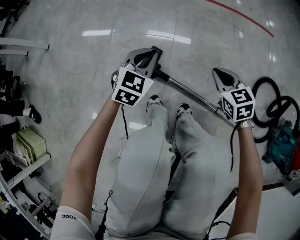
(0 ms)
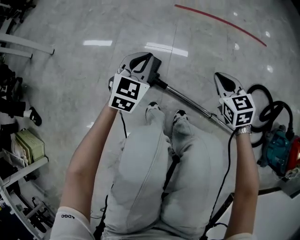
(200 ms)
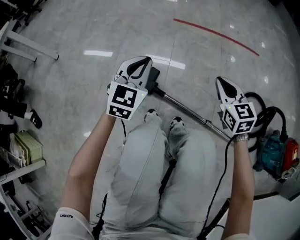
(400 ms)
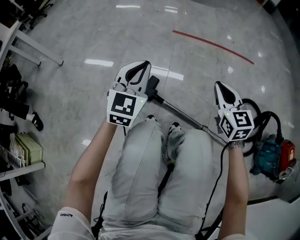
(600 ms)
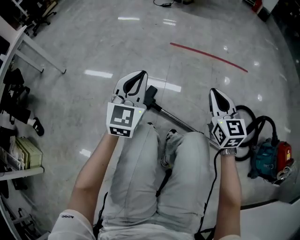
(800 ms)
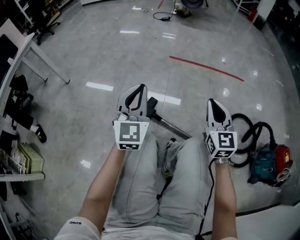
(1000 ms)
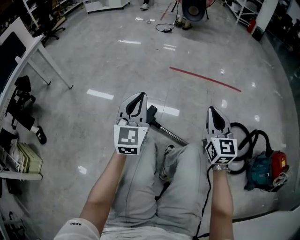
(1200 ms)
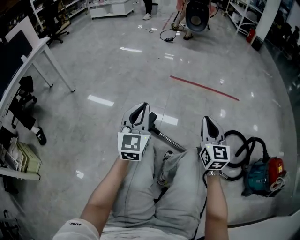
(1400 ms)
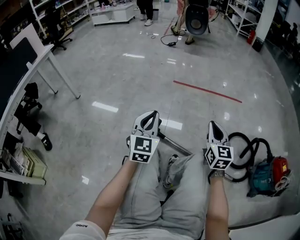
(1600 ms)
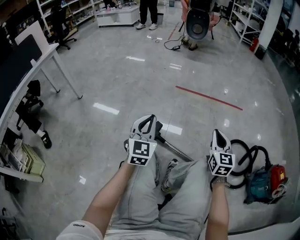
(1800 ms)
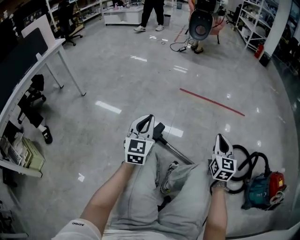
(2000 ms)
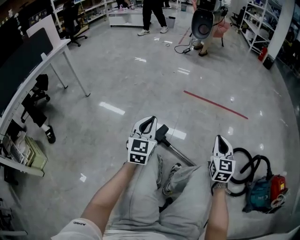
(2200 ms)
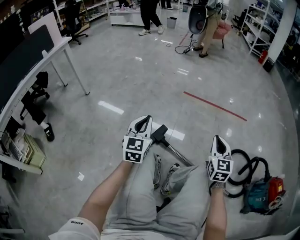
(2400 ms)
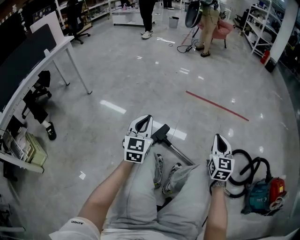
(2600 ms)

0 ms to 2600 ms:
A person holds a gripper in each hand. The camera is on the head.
0 ms to 1200 ms: The right gripper is displaced upward by approximately 35 cm, and tips its fingers upward by approximately 40 degrees. The left gripper shifts about 35 cm upward and backward, and points its fingers roughly 30 degrees further upward.
1200 ms to 2600 ms: The left gripper moves to the left, some 5 cm.

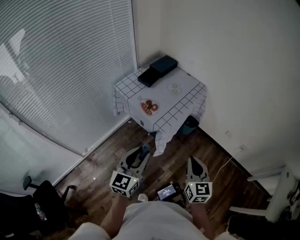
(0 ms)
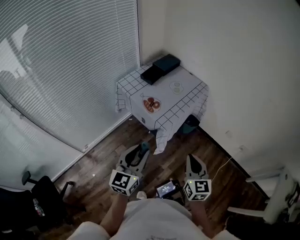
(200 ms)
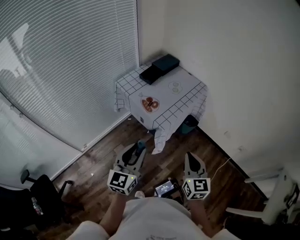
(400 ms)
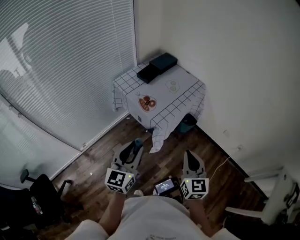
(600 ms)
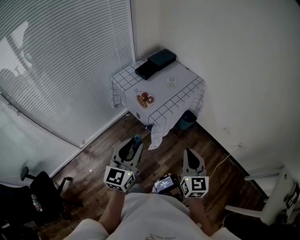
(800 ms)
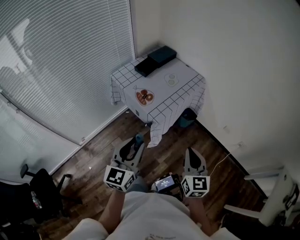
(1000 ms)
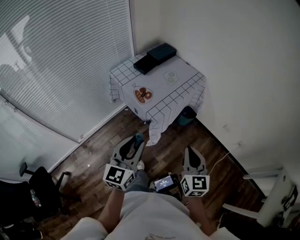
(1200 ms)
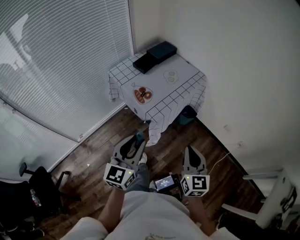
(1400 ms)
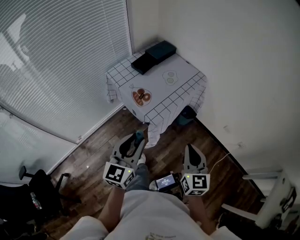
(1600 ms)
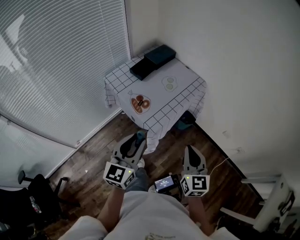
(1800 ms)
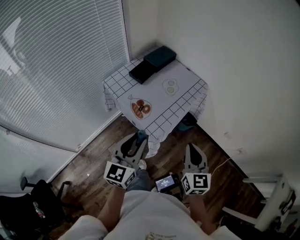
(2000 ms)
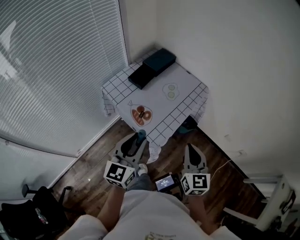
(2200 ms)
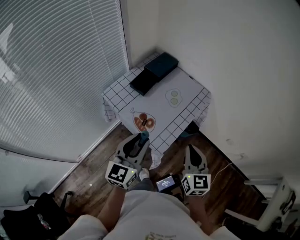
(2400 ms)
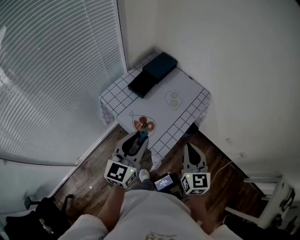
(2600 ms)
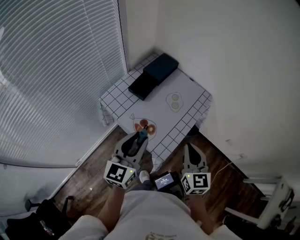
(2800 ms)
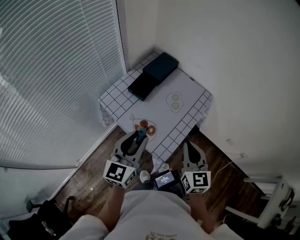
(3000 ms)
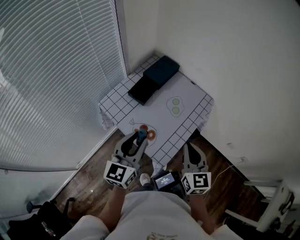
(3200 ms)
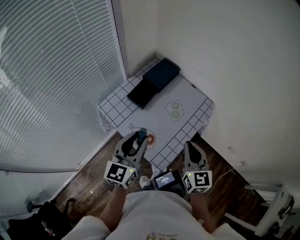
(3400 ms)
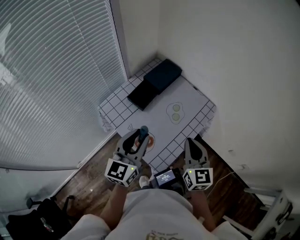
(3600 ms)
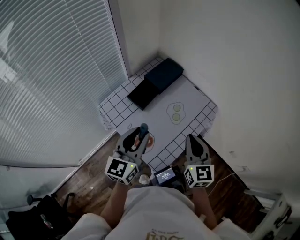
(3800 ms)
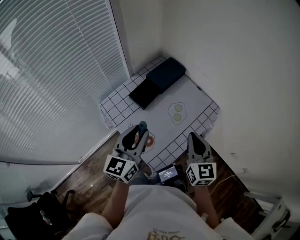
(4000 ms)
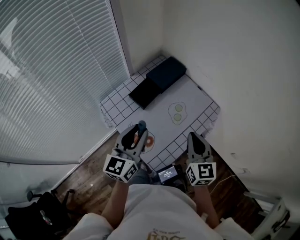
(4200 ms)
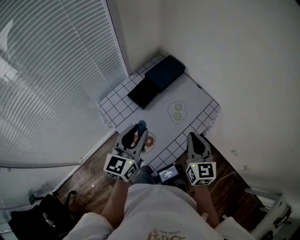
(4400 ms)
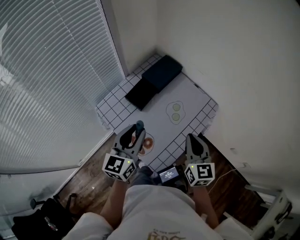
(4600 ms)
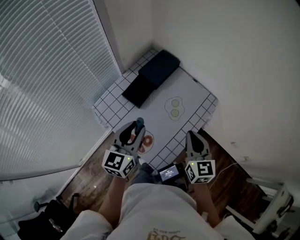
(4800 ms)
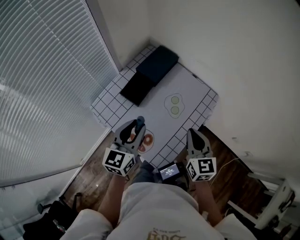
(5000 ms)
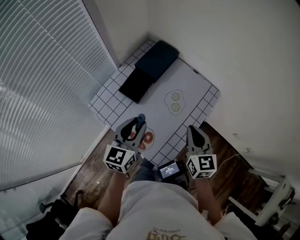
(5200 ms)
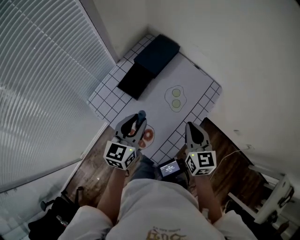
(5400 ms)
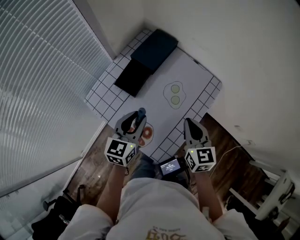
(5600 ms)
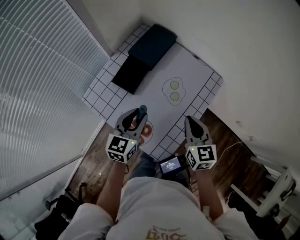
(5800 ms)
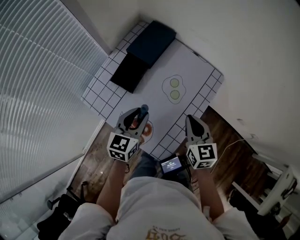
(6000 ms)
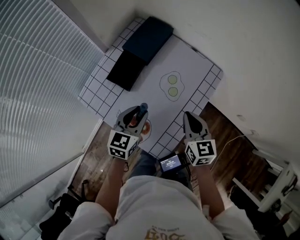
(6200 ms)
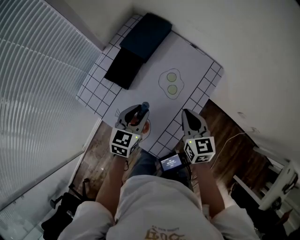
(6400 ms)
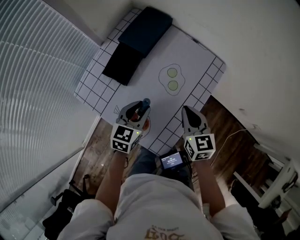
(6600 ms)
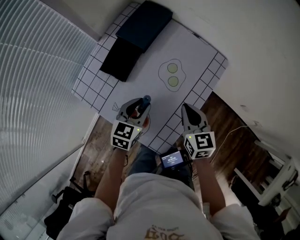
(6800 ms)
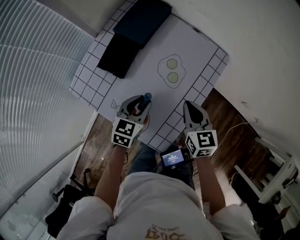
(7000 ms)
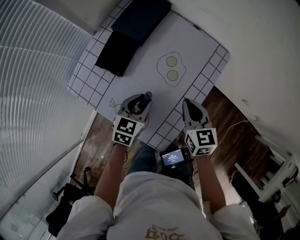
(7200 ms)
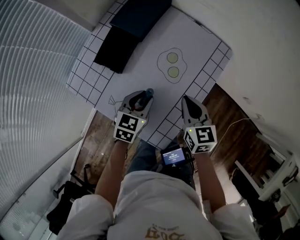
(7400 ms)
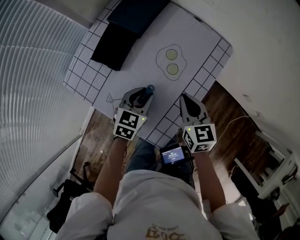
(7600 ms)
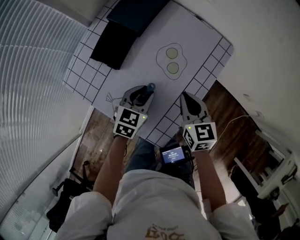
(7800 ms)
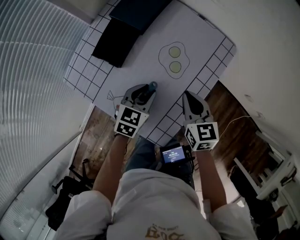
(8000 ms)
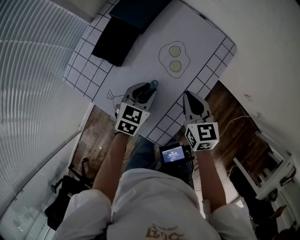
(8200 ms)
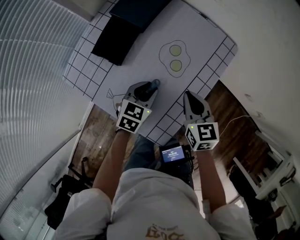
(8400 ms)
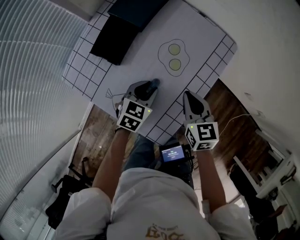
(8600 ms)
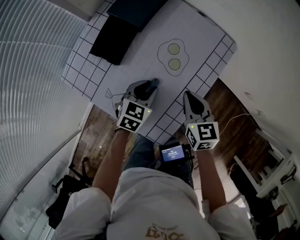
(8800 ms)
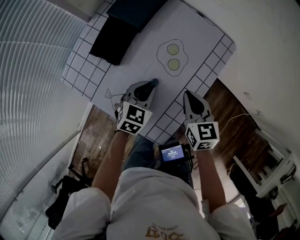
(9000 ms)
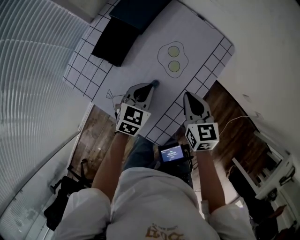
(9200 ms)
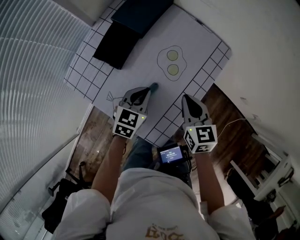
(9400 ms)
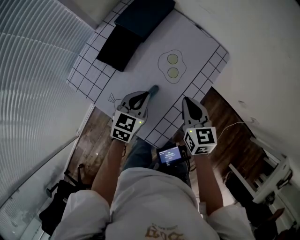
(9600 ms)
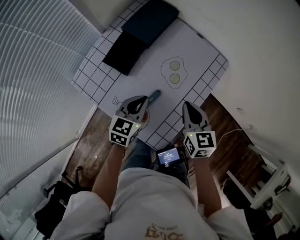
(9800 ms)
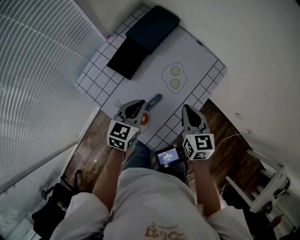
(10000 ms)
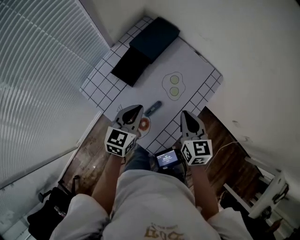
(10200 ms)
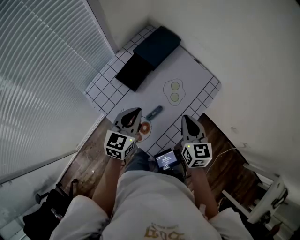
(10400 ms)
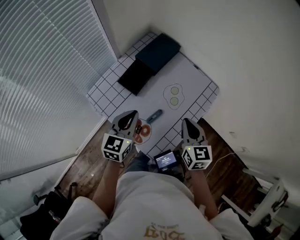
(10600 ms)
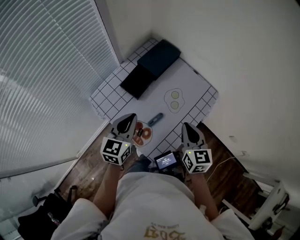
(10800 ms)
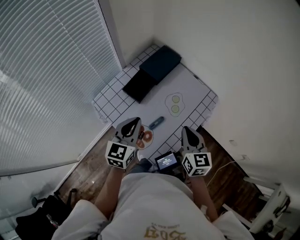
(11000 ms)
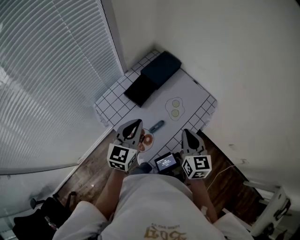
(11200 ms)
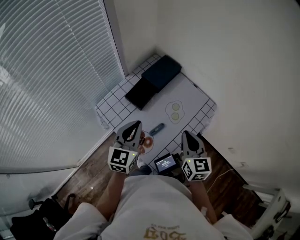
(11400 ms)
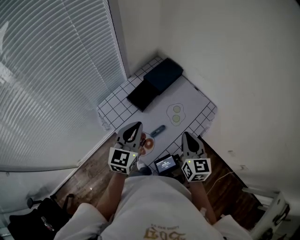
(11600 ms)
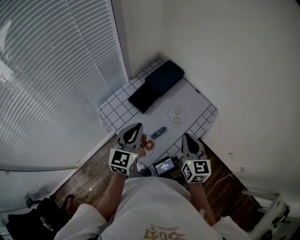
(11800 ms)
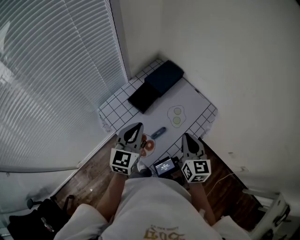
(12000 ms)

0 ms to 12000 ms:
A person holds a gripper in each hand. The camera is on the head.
0 ms to 1600 ms: The grippers both shift forward by roughly 5 cm.
1600 ms to 3000 ms: The two grippers go roughly 25 cm forward and to the left.
3000 ms to 4400 ms: Both grippers move forward, some 10 cm.
4400 ms to 6000 ms: The left gripper heads downward and forward, covering approximately 15 cm, and swivels approximately 20 degrees. The right gripper shifts roughly 10 cm downward.
6000 ms to 7600 ms: The left gripper shifts some 10 cm downward. Meanwhile the right gripper goes approximately 10 cm downward.
7600 ms to 9000 ms: The grippers move only a little.
9000 ms to 10400 ms: The right gripper heads upward, covering some 10 cm. The left gripper heads upward and to the left, covering some 20 cm, and swivels some 30 degrees.
10400 ms to 12000 ms: Both grippers travel together upward, about 10 cm.

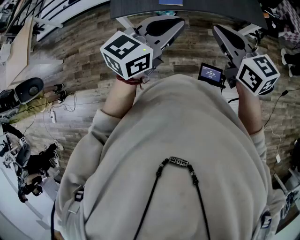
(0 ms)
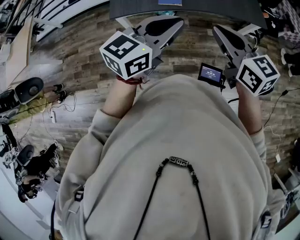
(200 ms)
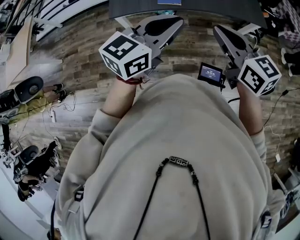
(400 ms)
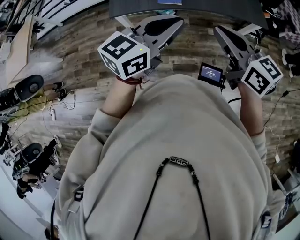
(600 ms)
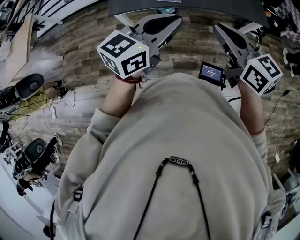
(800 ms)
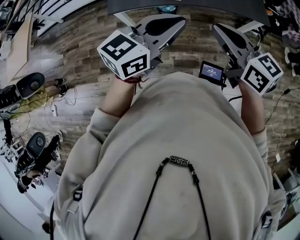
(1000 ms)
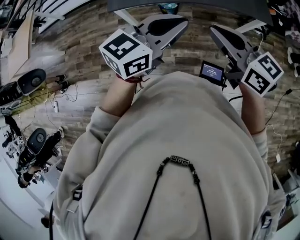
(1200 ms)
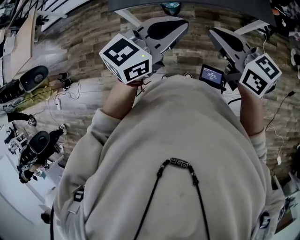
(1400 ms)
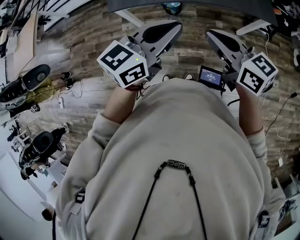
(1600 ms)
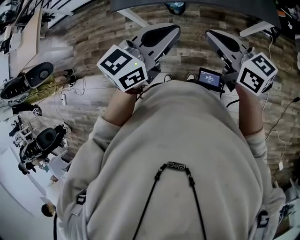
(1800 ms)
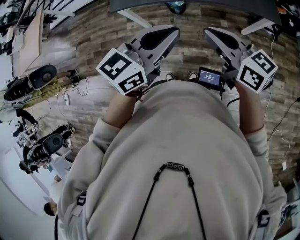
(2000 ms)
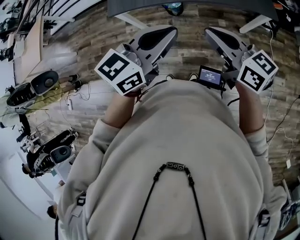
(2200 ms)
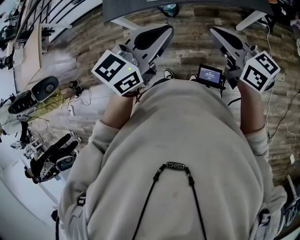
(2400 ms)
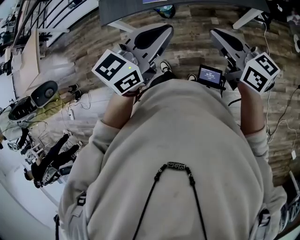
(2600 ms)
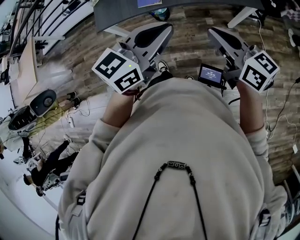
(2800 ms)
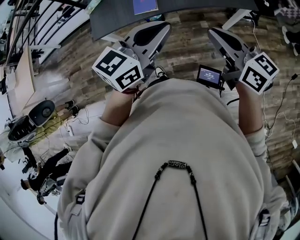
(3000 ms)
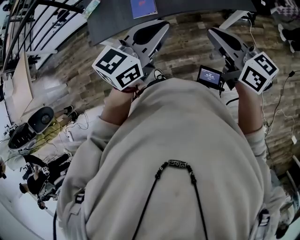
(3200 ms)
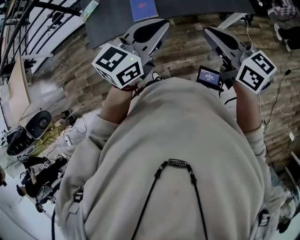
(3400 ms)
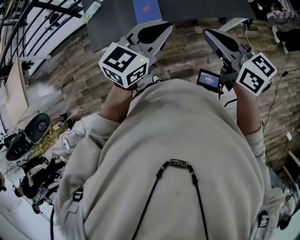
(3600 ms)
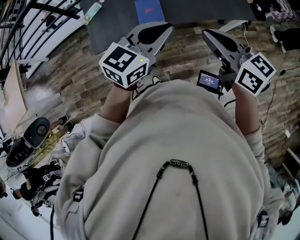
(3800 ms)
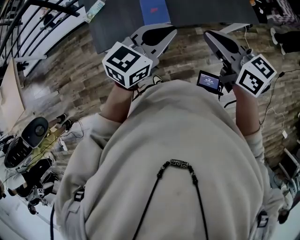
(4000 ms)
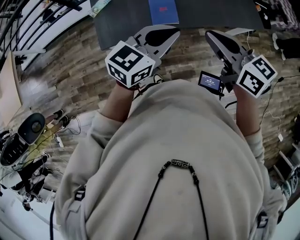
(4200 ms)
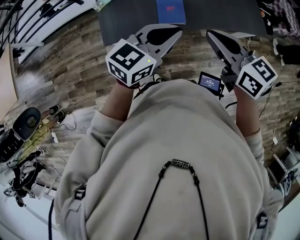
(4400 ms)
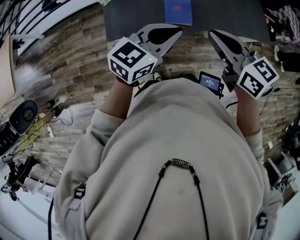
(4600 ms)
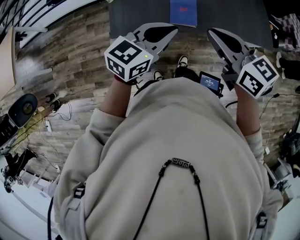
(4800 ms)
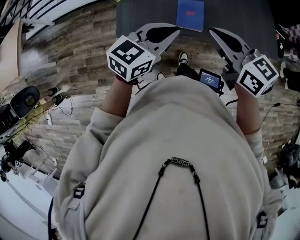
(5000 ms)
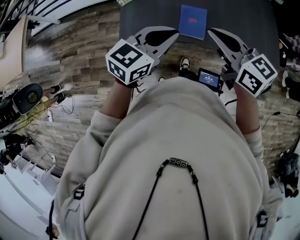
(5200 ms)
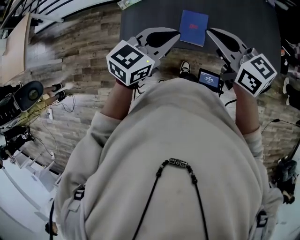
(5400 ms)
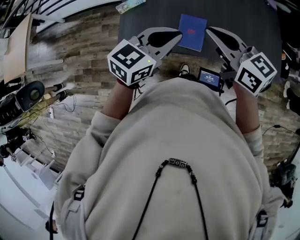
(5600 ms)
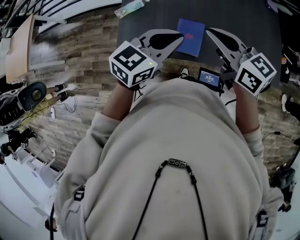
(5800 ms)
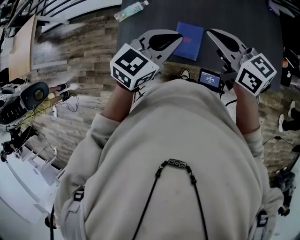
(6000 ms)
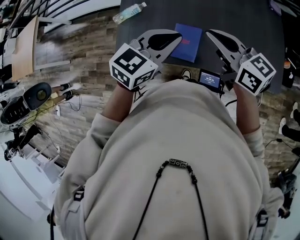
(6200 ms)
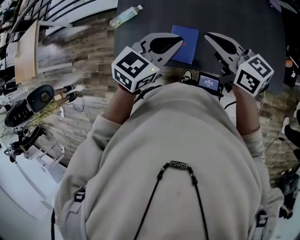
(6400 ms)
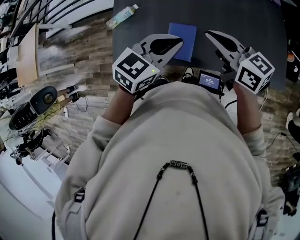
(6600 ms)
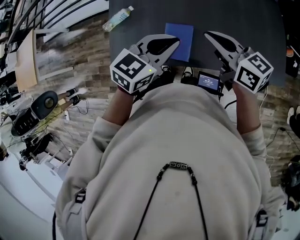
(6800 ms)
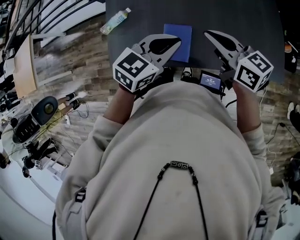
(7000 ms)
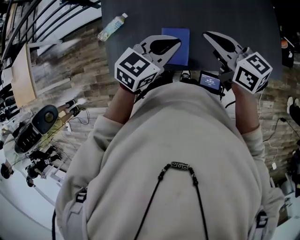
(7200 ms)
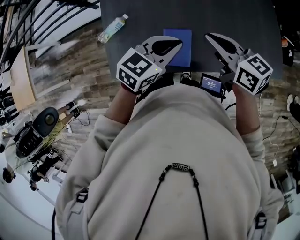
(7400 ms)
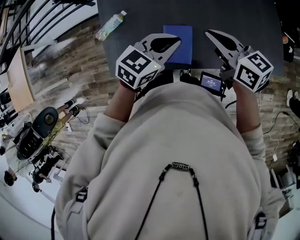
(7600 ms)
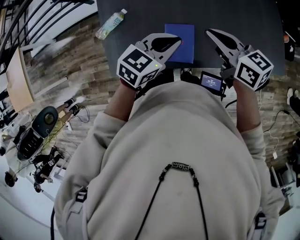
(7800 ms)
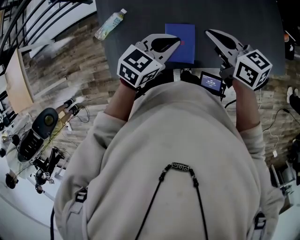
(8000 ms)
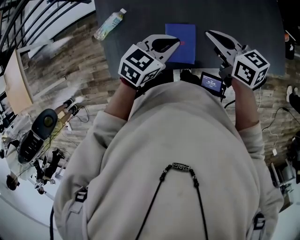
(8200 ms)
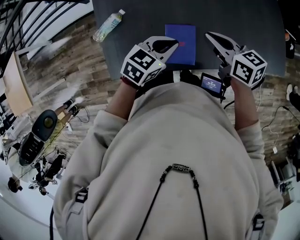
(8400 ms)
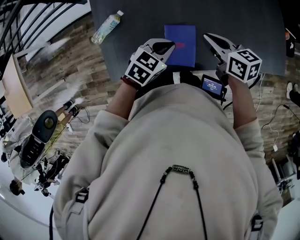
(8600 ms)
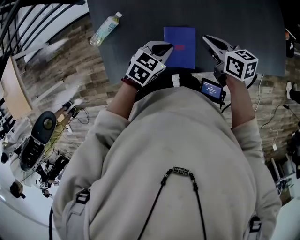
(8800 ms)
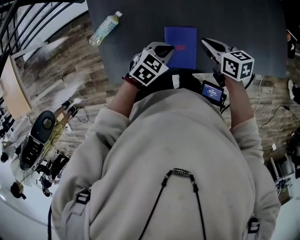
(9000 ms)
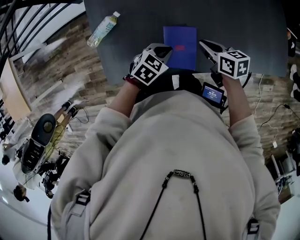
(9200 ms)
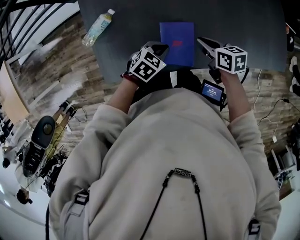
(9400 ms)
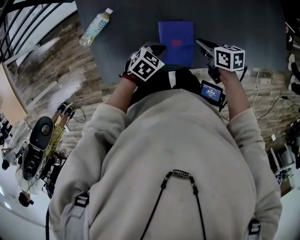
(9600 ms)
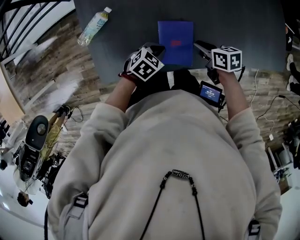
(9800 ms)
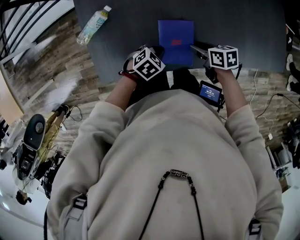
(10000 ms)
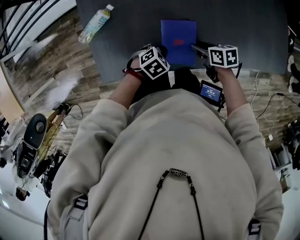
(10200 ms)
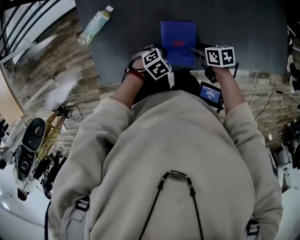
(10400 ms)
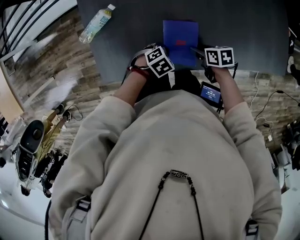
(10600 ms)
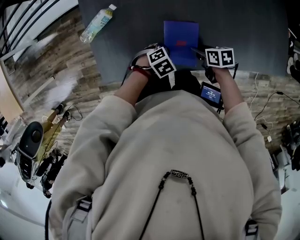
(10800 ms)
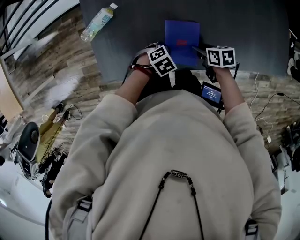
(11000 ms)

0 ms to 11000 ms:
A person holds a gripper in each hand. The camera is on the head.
0 ms to 1600 ms: The right gripper moves approximately 5 cm; the left gripper shifts about 5 cm to the right.
1600 ms to 3200 ms: The right gripper travels to the right and forward by roughly 10 cm; the left gripper travels forward by about 10 cm.
3200 ms to 4800 ms: Both grippers move to the left and forward, about 25 cm.
4800 ms to 6200 ms: The left gripper travels forward and to the right by about 15 cm. Meanwhile the right gripper travels forward by approximately 20 cm.
6200 ms to 7800 ms: The grippers both shift downward and forward by roughly 10 cm.
7800 ms to 9400 ms: The two grippers go about 25 cm downward. The right gripper rotates some 30 degrees. Meanwhile the left gripper turns by approximately 30 degrees.
9400 ms to 11000 ms: Both grippers move downward, roughly 10 cm. The right gripper opens up. Meanwhile the left gripper turns by some 20 degrees.
